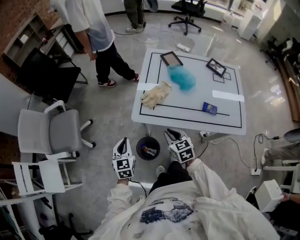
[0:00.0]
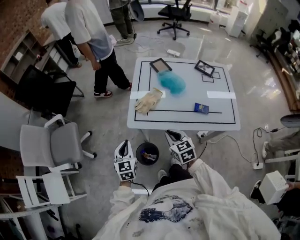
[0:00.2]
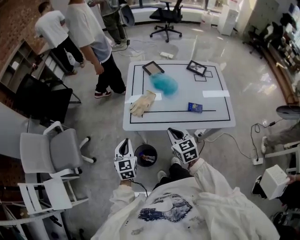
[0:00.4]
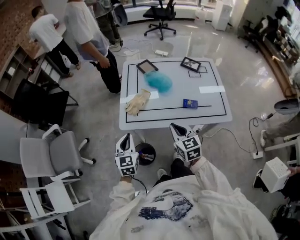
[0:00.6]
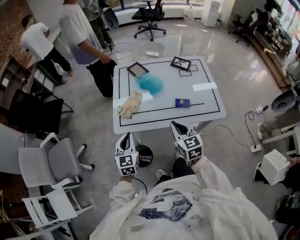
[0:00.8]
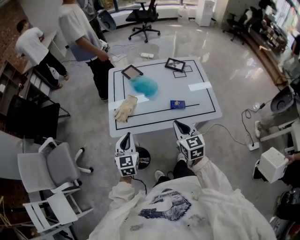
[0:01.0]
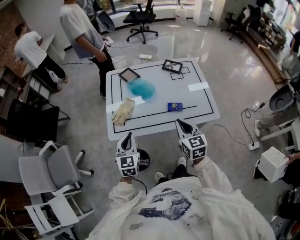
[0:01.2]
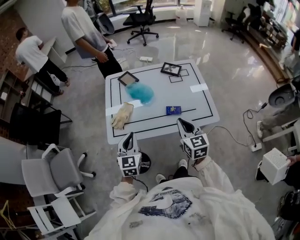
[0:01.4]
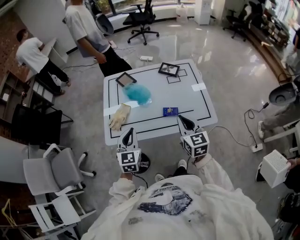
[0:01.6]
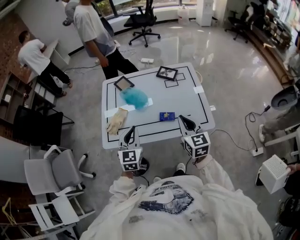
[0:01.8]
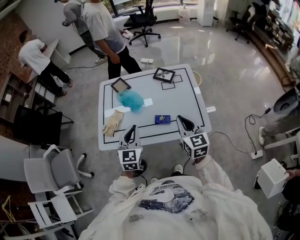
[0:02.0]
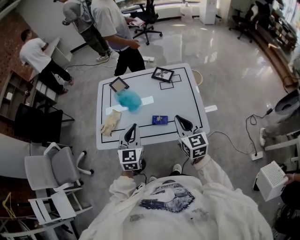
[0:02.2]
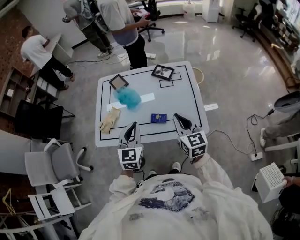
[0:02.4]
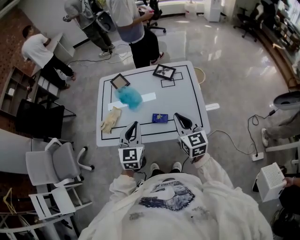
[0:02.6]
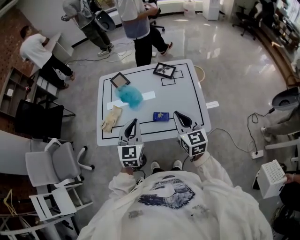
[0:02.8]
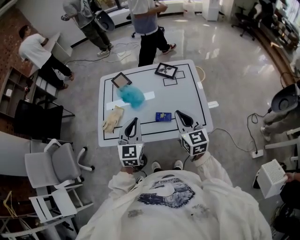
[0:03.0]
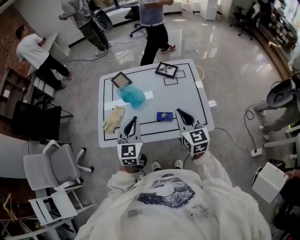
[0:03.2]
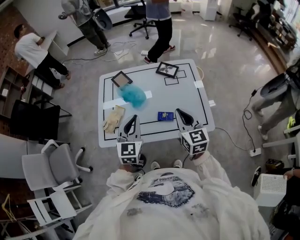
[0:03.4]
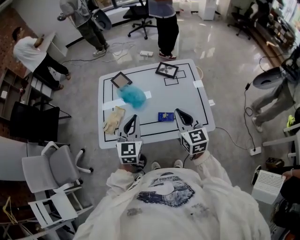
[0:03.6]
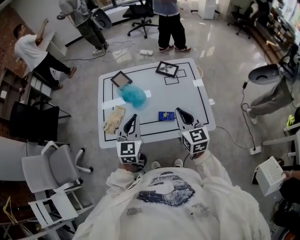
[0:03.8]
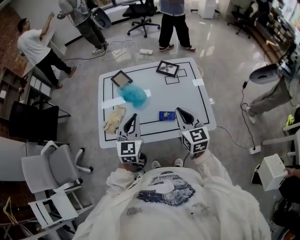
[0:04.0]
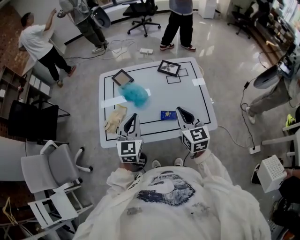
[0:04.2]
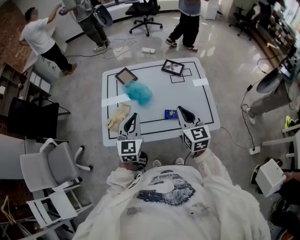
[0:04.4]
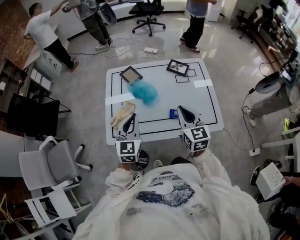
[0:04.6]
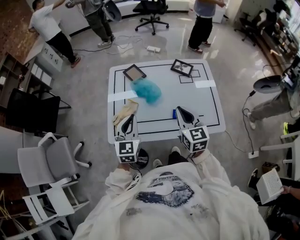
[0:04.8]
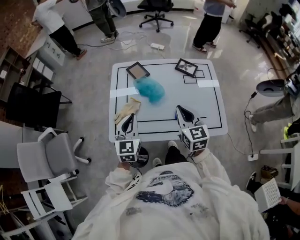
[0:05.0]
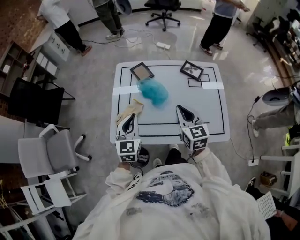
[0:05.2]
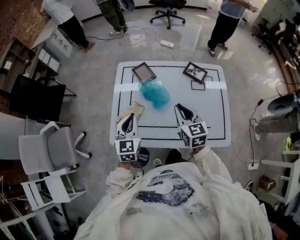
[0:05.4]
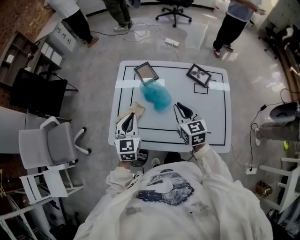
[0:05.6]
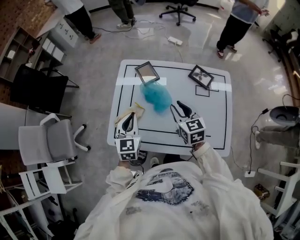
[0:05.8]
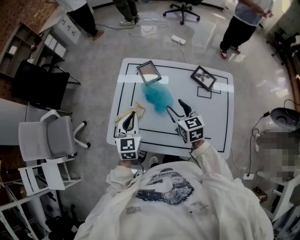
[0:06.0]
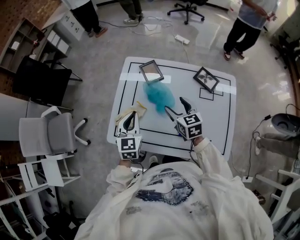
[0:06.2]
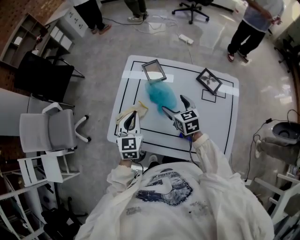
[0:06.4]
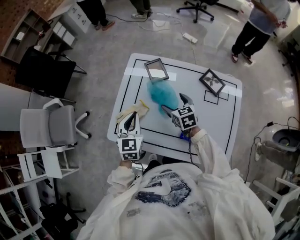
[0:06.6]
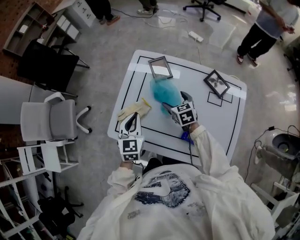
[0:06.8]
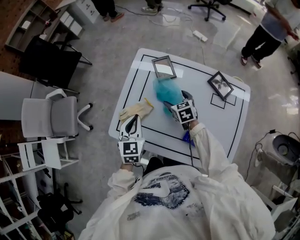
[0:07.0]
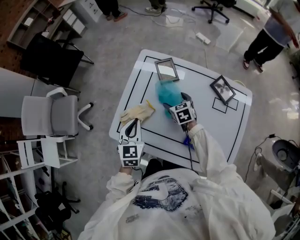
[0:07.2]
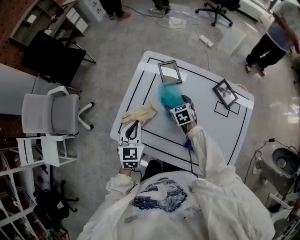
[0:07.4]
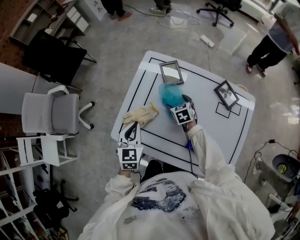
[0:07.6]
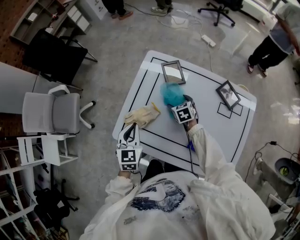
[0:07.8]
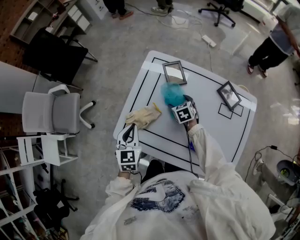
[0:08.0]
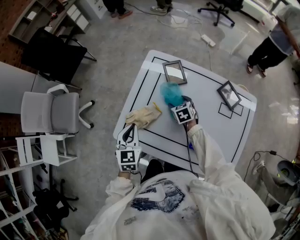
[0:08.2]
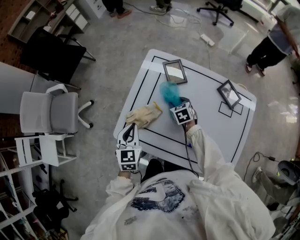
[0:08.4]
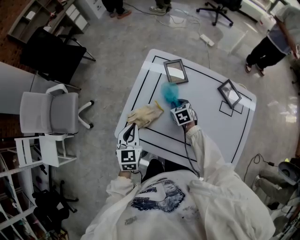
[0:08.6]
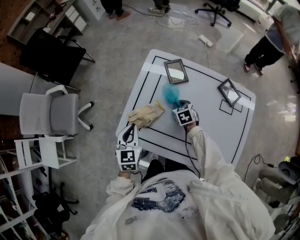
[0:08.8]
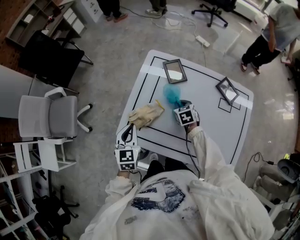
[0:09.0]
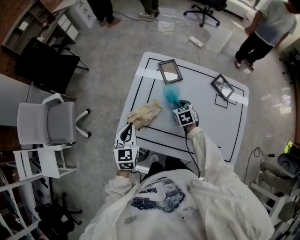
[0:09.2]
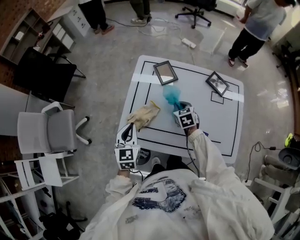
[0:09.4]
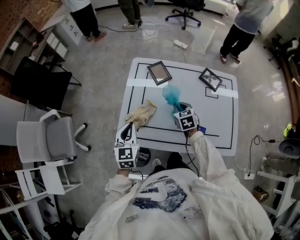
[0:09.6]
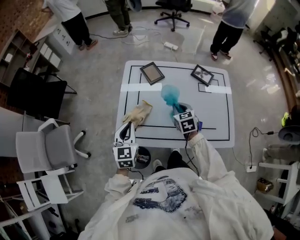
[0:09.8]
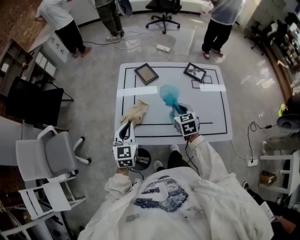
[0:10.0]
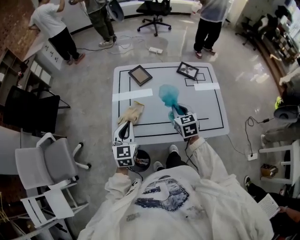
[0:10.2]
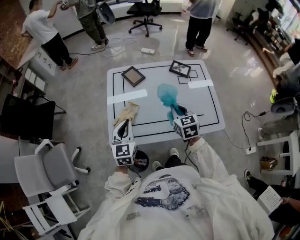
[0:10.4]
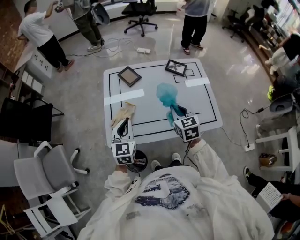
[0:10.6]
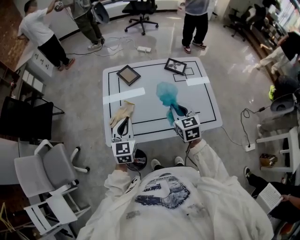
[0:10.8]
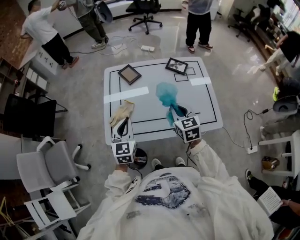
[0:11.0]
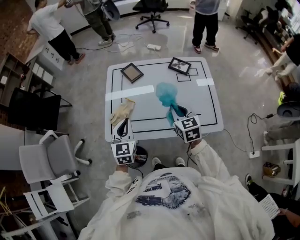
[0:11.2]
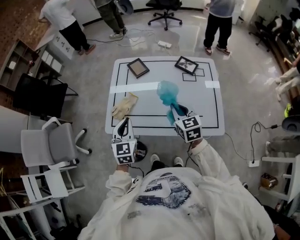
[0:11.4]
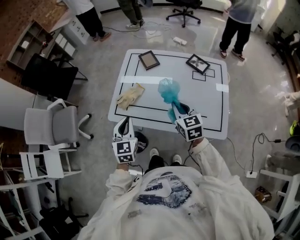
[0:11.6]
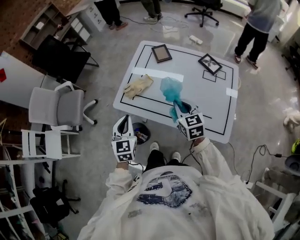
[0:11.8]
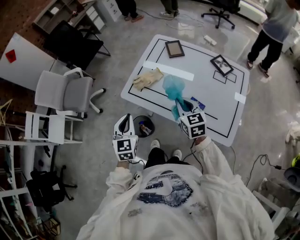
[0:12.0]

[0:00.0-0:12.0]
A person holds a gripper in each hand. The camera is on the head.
0:00.0 to 0:01.6: The left gripper moves about 30 cm, and turns by approximately 30 degrees. The right gripper changes place by approximately 35 cm, and changes its angle by about 30 degrees.
0:01.6 to 0:03.0: The two grippers go some 10 cm to the right and forward.
0:03.0 to 0:04.4: Both grippers move to the left, roughly 5 cm.
0:04.4 to 0:06.0: The left gripper moves forward, to the left and downward, approximately 15 cm, and swivels some 20 degrees, while the right gripper travels forward, downward and to the left by approximately 20 cm, changes its angle by some 30 degrees, and opens.
0:06.0 to 0:07.6: The right gripper shifts about 20 cm downward and forward, rotates roughly 30 degrees, and opens its fingers. The left gripper shifts about 5 cm to the left.
0:07.6 to 0:09.0: The left gripper is displaced to the left by about 5 cm; the right gripper closes.
0:09.0 to 0:10.4: The right gripper travels upward by roughly 20 cm, and turns by about 30 degrees. Meanwhile the left gripper heads upward, covering approximately 5 cm, and turns by some 30 degrees.
0:10.4 to 0:12.0: The left gripper moves roughly 20 cm, and swivels about 40 degrees. The right gripper shifts by some 5 cm, and turns by about 40 degrees.

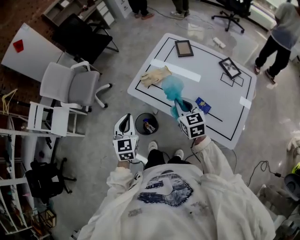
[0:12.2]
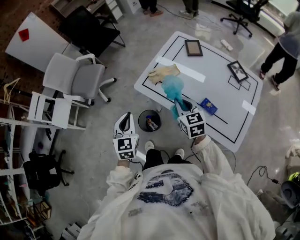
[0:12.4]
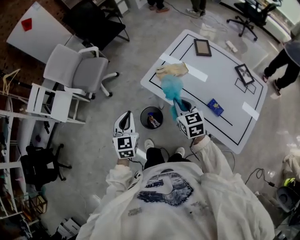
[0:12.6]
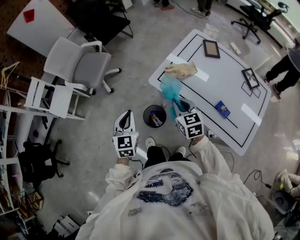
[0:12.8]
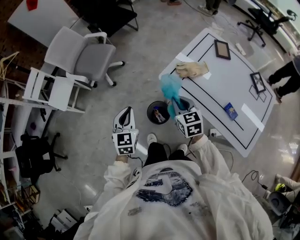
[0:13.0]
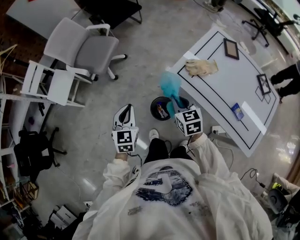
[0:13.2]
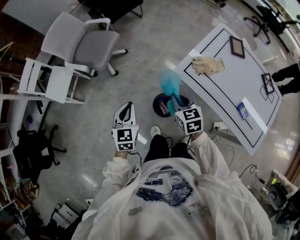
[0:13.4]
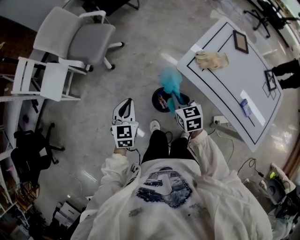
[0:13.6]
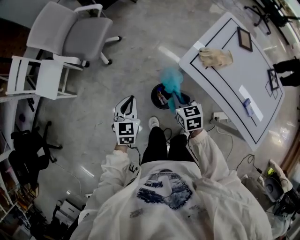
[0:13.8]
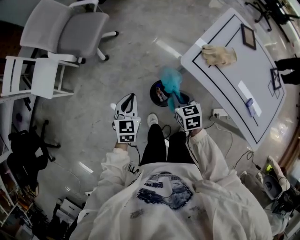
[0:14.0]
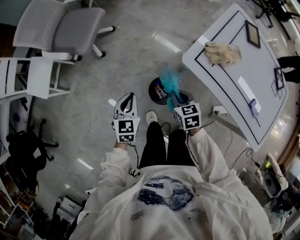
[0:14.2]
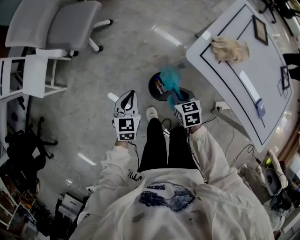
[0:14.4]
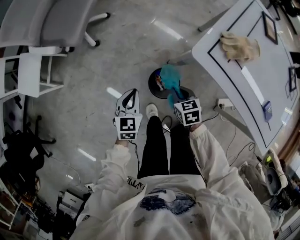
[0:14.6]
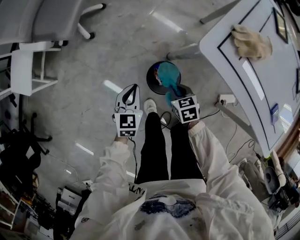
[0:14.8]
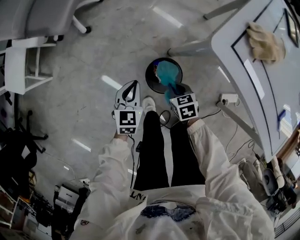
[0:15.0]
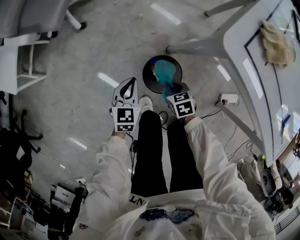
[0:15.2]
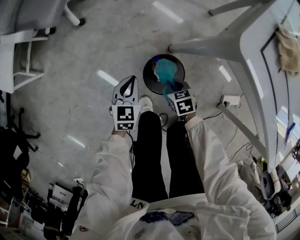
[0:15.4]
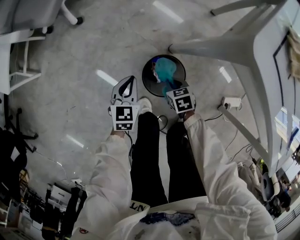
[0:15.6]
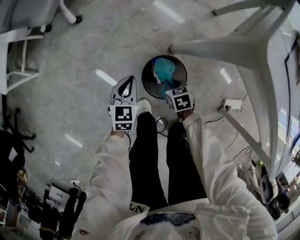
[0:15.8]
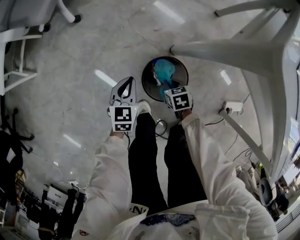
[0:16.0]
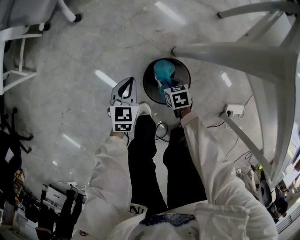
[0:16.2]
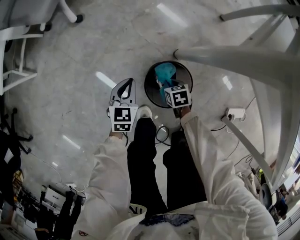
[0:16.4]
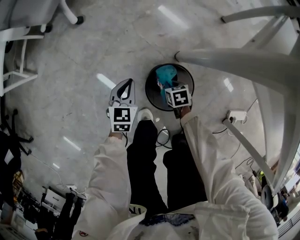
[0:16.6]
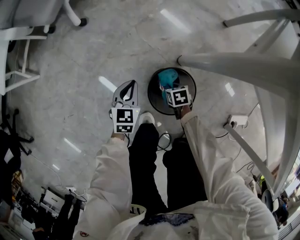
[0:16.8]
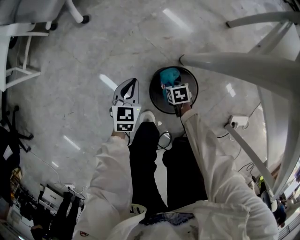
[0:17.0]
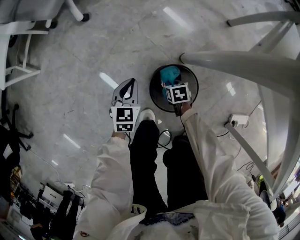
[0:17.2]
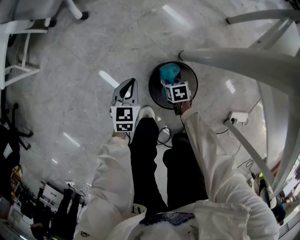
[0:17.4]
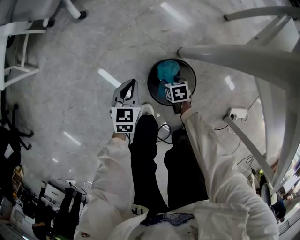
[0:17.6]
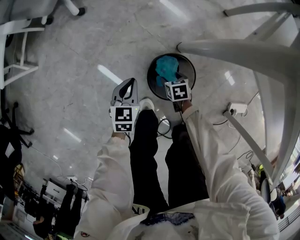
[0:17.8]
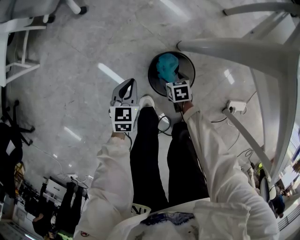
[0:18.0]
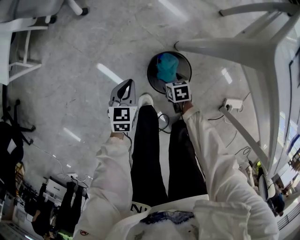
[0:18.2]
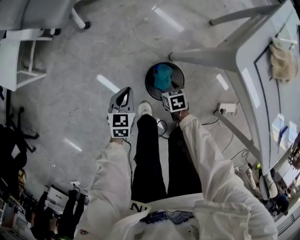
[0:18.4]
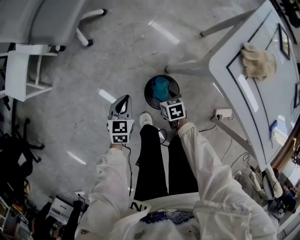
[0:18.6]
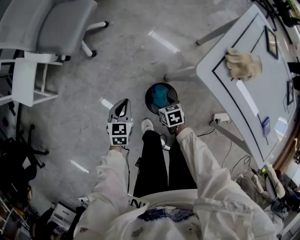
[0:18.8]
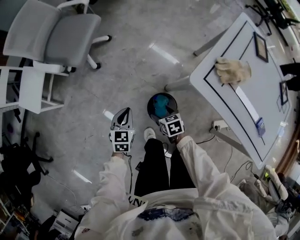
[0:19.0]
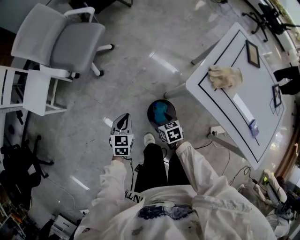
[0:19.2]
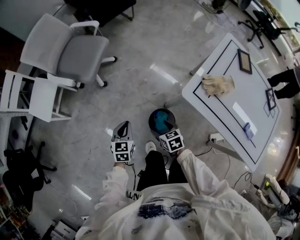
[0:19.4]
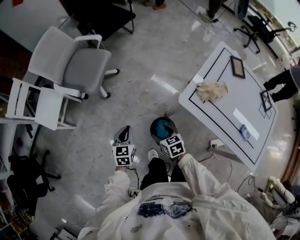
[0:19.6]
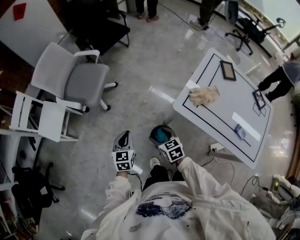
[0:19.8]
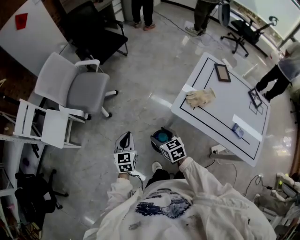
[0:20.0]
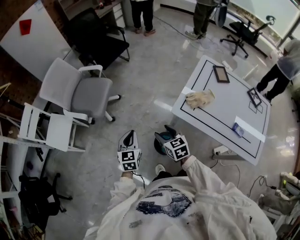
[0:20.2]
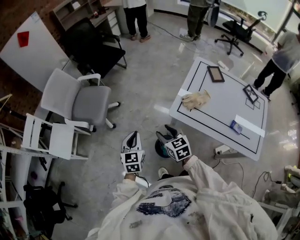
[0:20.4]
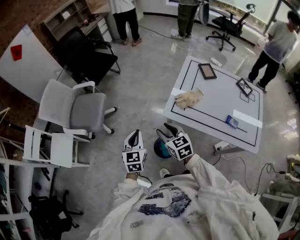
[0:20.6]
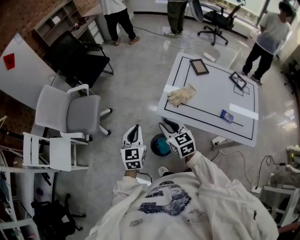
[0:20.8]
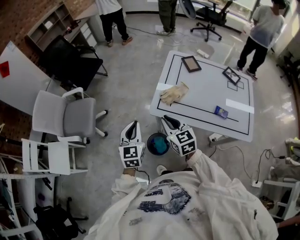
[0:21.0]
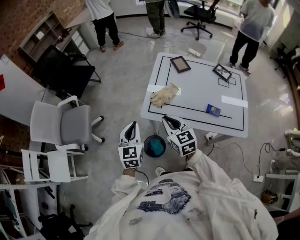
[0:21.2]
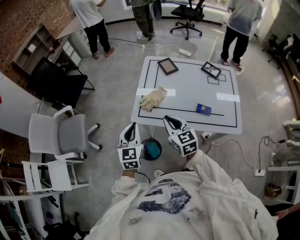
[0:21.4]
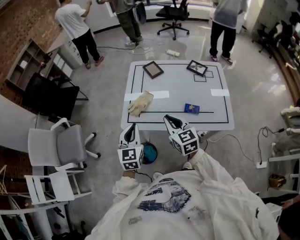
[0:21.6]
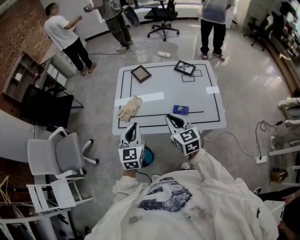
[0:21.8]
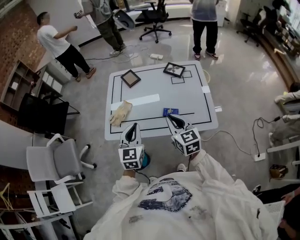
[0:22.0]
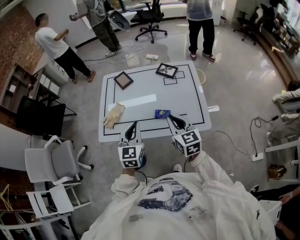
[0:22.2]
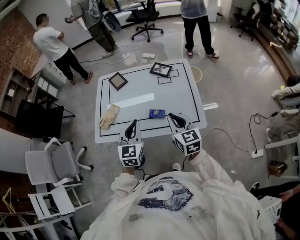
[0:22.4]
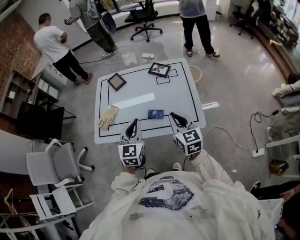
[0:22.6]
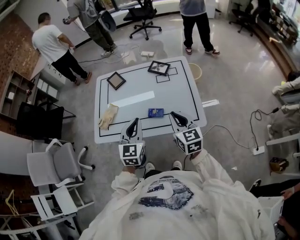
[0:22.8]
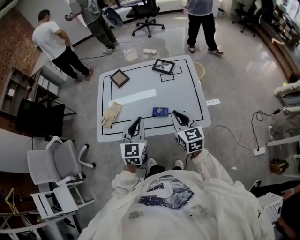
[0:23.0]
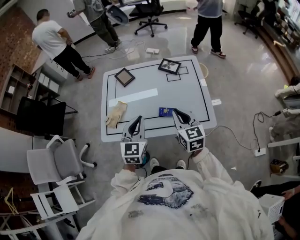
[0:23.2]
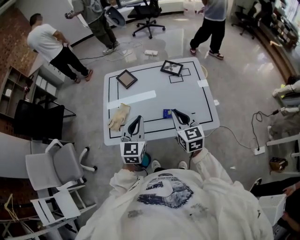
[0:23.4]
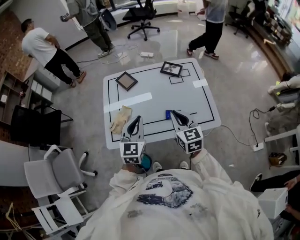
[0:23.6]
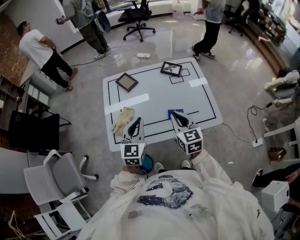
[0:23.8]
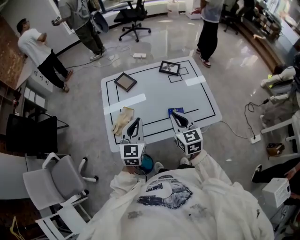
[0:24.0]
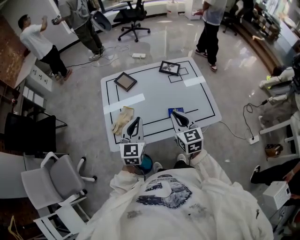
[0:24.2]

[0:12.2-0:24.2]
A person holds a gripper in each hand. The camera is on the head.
0:12.2 to 0:13.8: The right gripper travels to the left and downward by about 35 cm, and rotates some 20 degrees, while the left gripper shifts about 35 cm to the left, downward and forward.
0:13.8 to 0:15.2: Both grippers move downward, some 35 cm. The right gripper turns by some 20 degrees.
0:15.2 to 0:16.6: Both grippers travel together downward, roughly 20 cm.
0:16.6 to 0:18.2: Both grippers travel together upward, some 5 cm. The right gripper opens.
0:18.2 to 0:19.8: The two grippers go some 40 cm upward. The right gripper turns by roughly 30 degrees.
0:19.8 to 0:21.2: The left gripper changes place by approximately 30 cm, and changes its angle by roughly 30 degrees; the right gripper heads upward, covering roughly 20 cm, changes its angle by about 40 degrees, and closes up.
0:21.2 to 0:22.6: The two grippers travel together, to the right, roughly 40 cm. The left gripper turns by about 20 degrees, while the right gripper swivels approximately 20 degrees.
0:22.6 to 0:24.2: Both grippers move to the left, some 15 cm.
